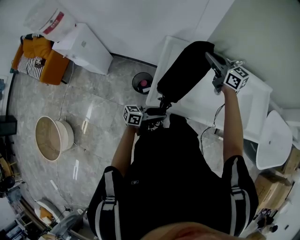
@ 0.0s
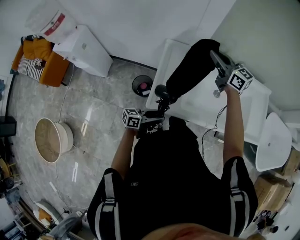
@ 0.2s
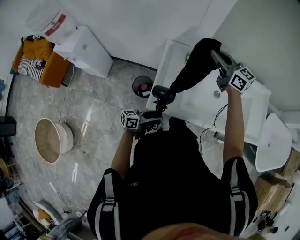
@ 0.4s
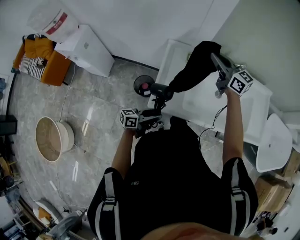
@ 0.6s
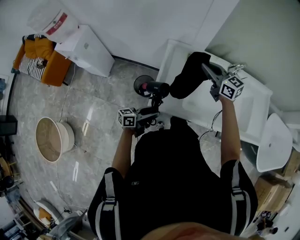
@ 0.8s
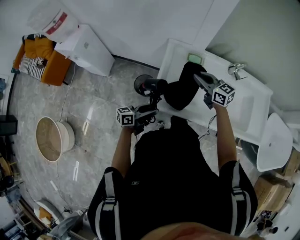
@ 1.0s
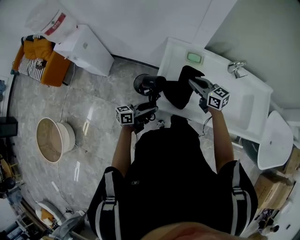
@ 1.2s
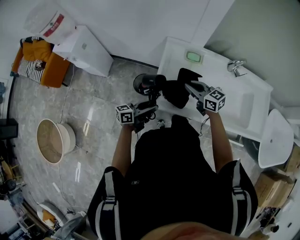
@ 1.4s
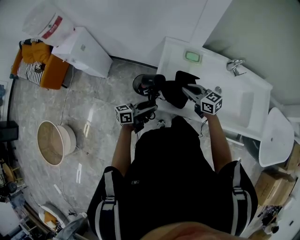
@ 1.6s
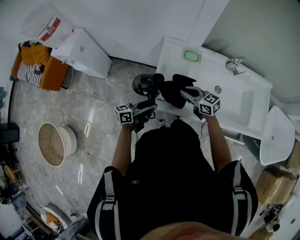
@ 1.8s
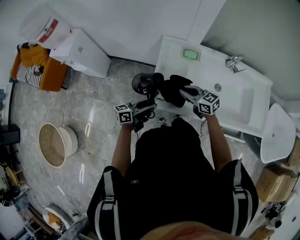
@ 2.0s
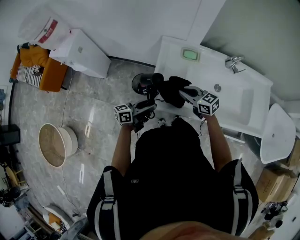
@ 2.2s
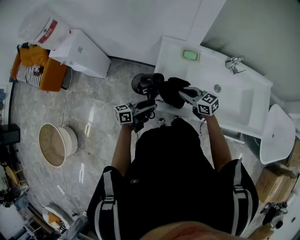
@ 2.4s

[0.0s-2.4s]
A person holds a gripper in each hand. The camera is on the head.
0.0s to 1.2s: The left gripper goes some 10 cm to the left. Meanwhile the right gripper is displaced downward and backward by about 15 cm.
1.2s to 2.4s: The right gripper is displaced downward by approximately 5 cm.

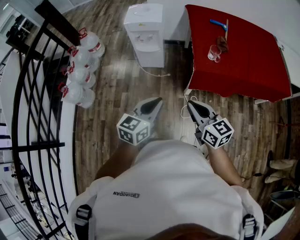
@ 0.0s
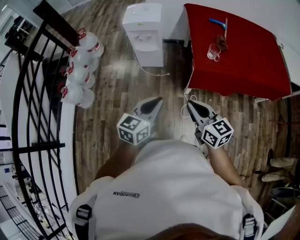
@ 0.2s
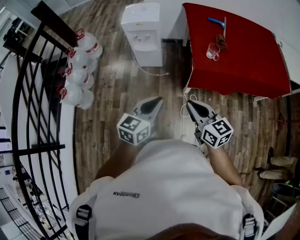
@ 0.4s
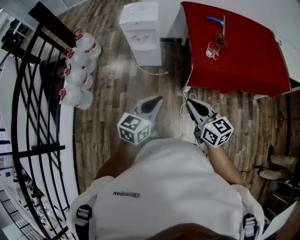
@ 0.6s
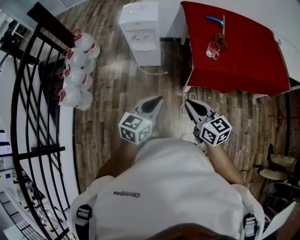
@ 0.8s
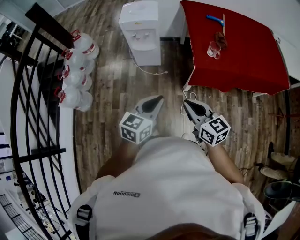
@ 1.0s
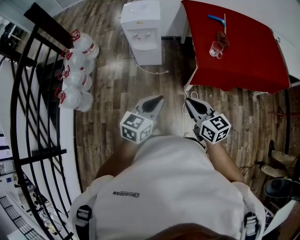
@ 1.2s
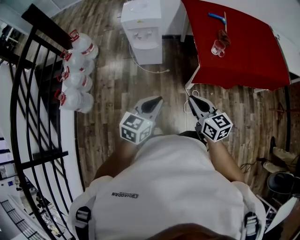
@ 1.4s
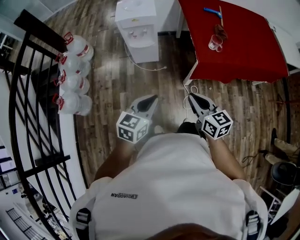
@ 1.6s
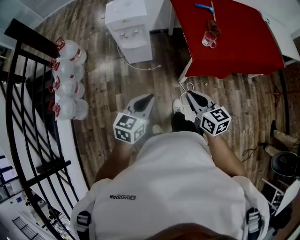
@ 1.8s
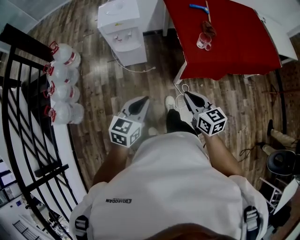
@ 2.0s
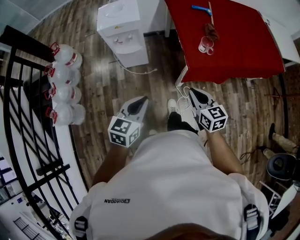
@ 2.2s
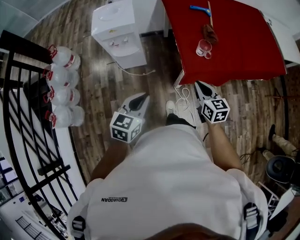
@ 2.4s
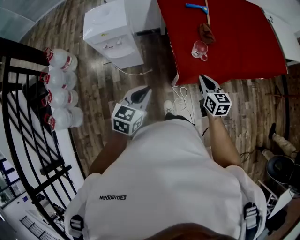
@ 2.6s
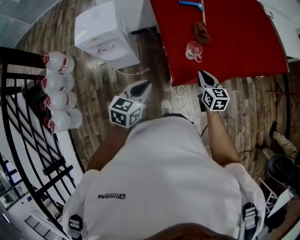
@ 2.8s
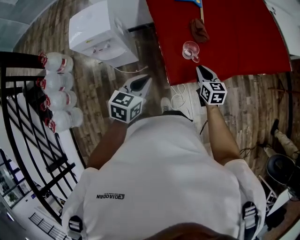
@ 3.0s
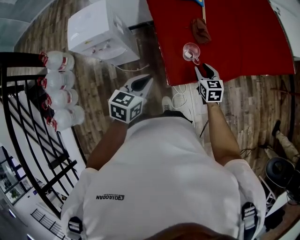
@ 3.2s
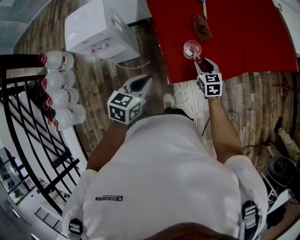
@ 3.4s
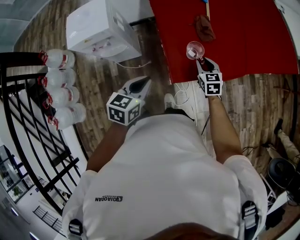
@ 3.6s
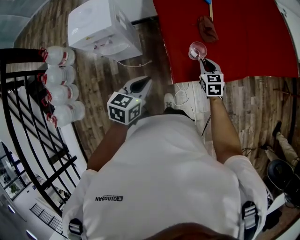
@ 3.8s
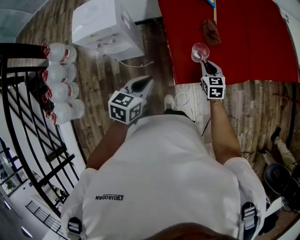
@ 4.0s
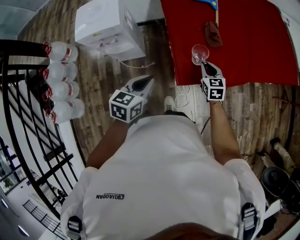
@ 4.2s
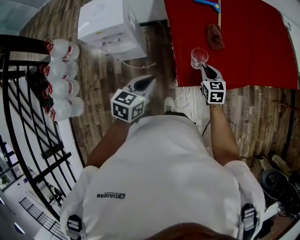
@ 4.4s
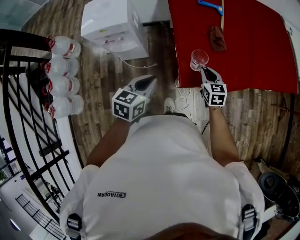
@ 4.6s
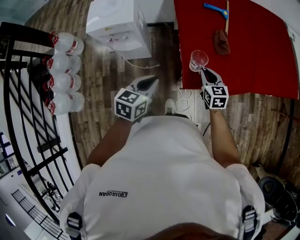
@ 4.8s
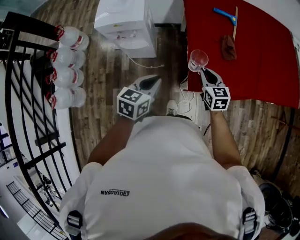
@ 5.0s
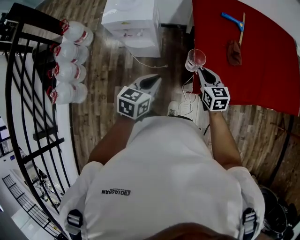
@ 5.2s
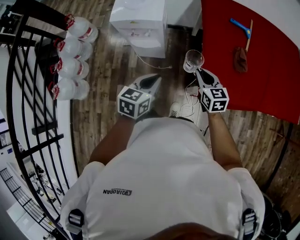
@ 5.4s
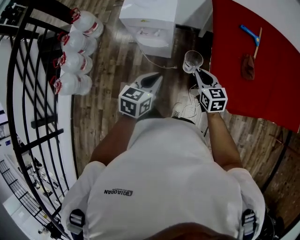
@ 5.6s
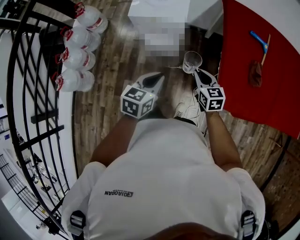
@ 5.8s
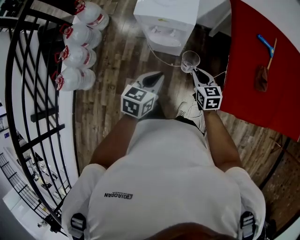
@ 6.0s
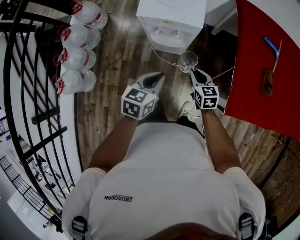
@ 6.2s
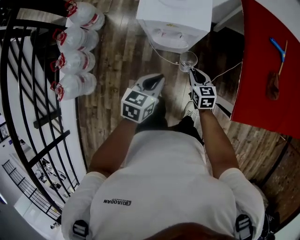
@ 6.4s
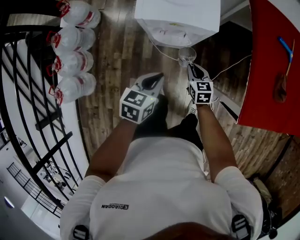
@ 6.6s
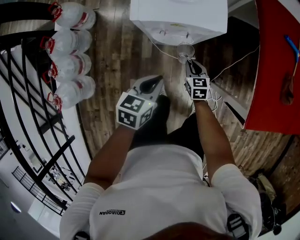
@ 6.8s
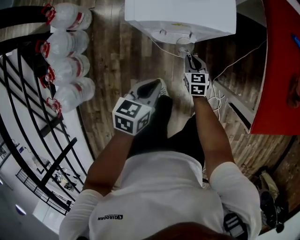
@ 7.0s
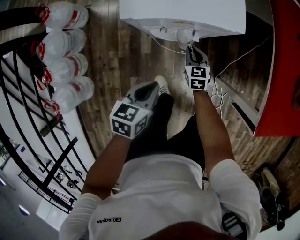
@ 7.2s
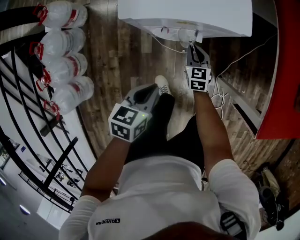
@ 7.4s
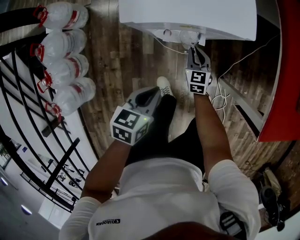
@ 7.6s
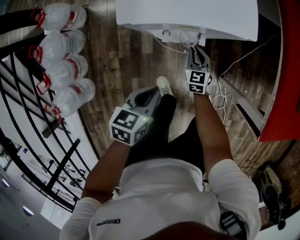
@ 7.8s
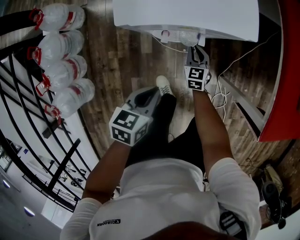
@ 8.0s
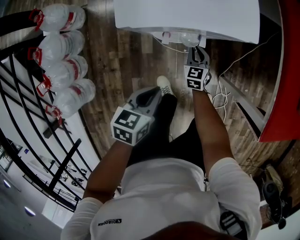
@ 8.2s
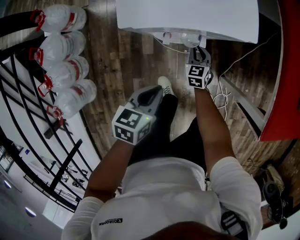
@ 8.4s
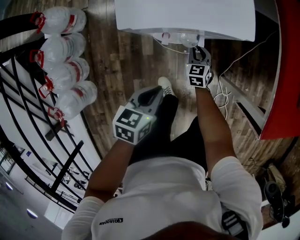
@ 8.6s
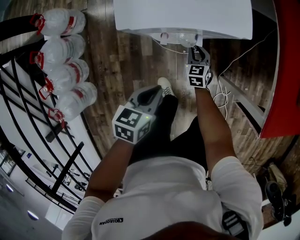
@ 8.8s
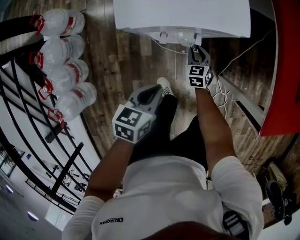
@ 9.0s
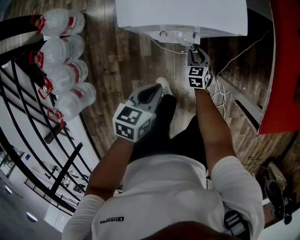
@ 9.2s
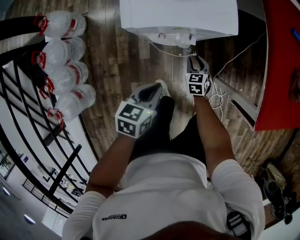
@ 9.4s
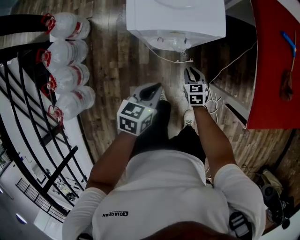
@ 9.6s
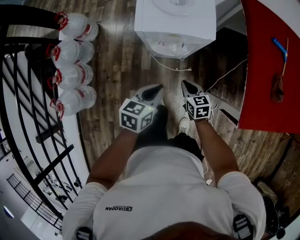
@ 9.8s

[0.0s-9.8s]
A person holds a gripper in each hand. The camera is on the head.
0.0s to 1.4s: Both grippers move to the left, about 5 cm.
1.4s to 2.8s: The left gripper is displaced forward by approximately 25 cm. Meanwhile the right gripper heads forward and to the right, covering about 35 cm, and changes its angle by some 30 degrees.
2.8s to 4.2s: The left gripper goes about 5 cm forward, while the right gripper heads forward and downward, covering roughly 10 cm.
4.2s to 5.6s: The left gripper is displaced to the left by some 15 cm. The right gripper heads to the left, covering roughly 25 cm, and turns by roughly 20 degrees.
5.6s to 7.0s: The left gripper shifts about 30 cm to the left, downward and forward; the right gripper heads downward, to the left and forward, covering approximately 40 cm.
7.0s to 8.4s: The right gripper shifts roughly 10 cm downward and forward.
8.4s to 9.8s: The right gripper moves upward and backward, about 20 cm, and swivels some 30 degrees, while the left gripper heads upward, covering about 10 cm.

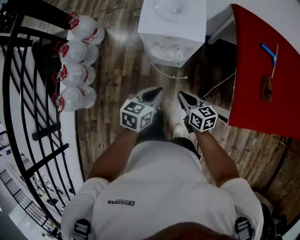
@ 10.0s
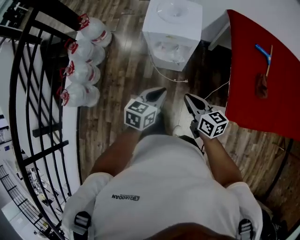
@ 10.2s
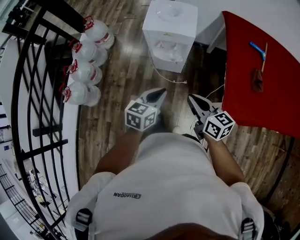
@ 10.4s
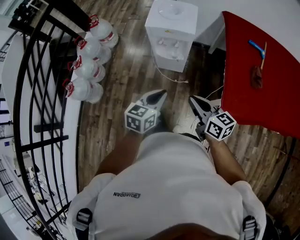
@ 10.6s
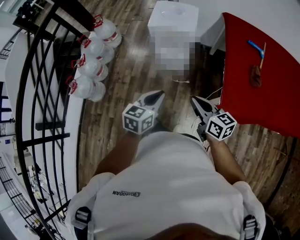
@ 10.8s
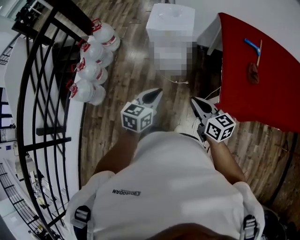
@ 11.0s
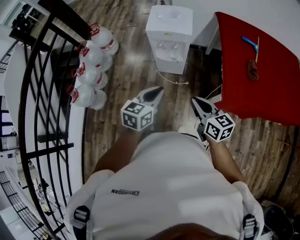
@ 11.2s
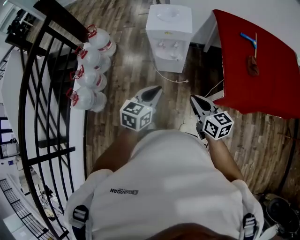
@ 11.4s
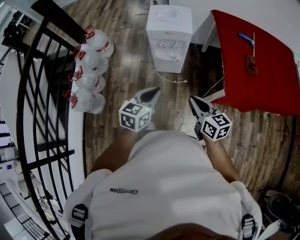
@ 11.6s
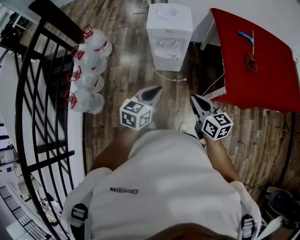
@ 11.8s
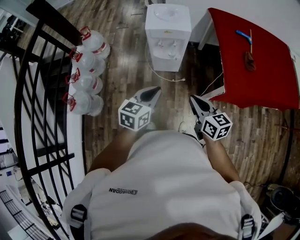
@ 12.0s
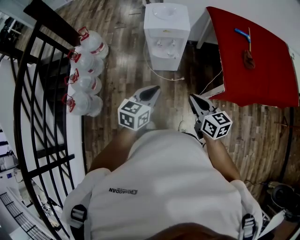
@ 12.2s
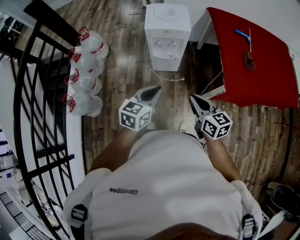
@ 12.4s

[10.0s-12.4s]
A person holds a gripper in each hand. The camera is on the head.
10.0s to 11.2s: The two grippers go approximately 25 cm backward and upward.
11.2s to 12.4s: Both grippers travel together to the left, approximately 5 cm.

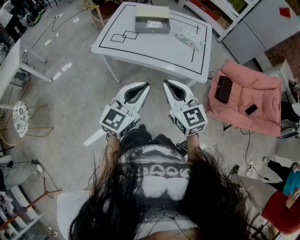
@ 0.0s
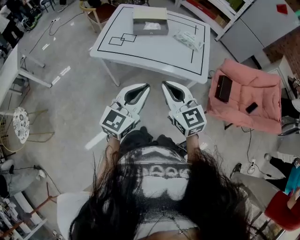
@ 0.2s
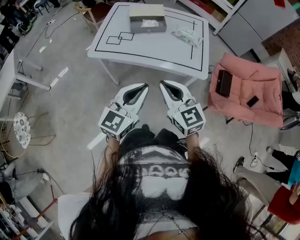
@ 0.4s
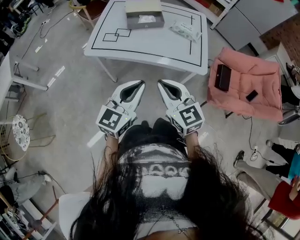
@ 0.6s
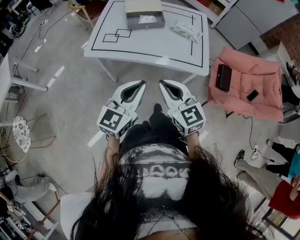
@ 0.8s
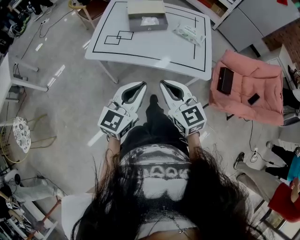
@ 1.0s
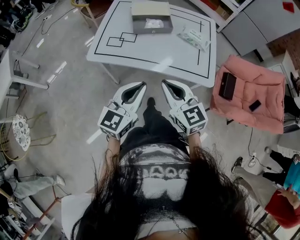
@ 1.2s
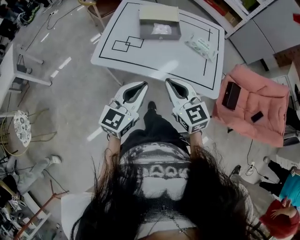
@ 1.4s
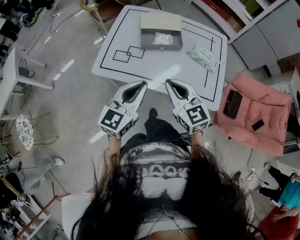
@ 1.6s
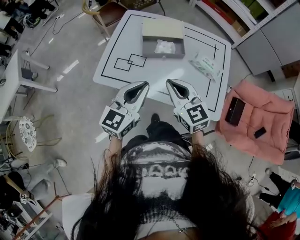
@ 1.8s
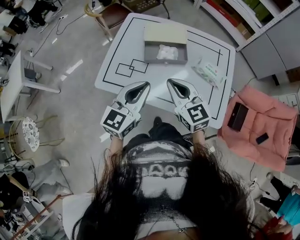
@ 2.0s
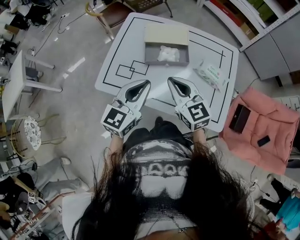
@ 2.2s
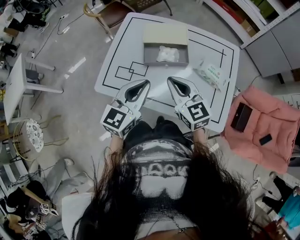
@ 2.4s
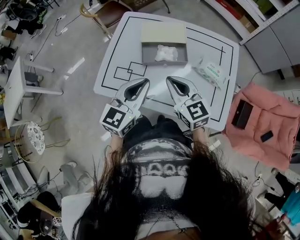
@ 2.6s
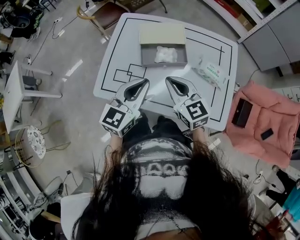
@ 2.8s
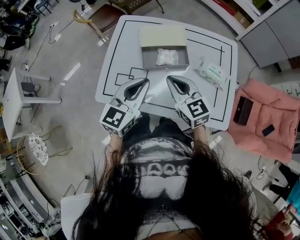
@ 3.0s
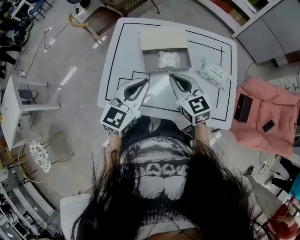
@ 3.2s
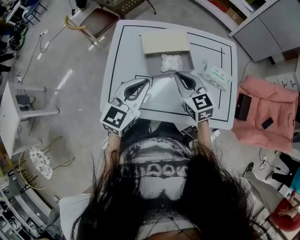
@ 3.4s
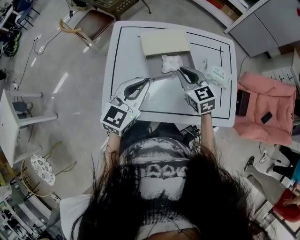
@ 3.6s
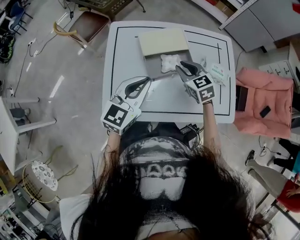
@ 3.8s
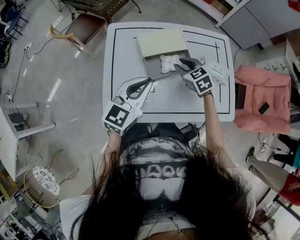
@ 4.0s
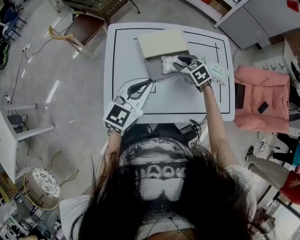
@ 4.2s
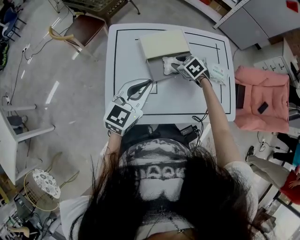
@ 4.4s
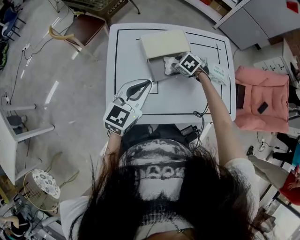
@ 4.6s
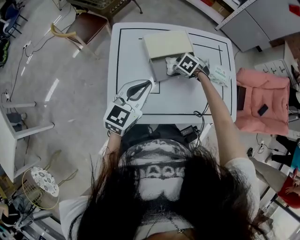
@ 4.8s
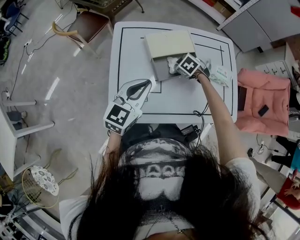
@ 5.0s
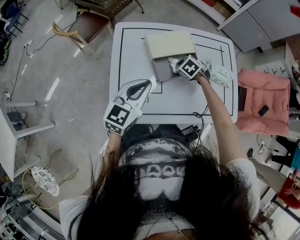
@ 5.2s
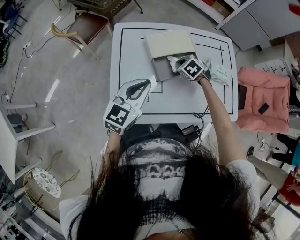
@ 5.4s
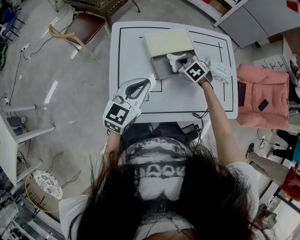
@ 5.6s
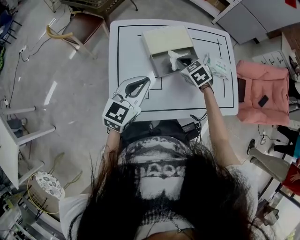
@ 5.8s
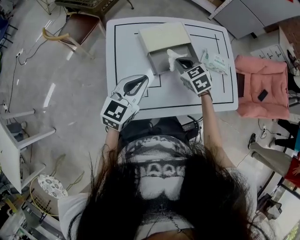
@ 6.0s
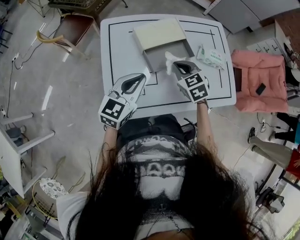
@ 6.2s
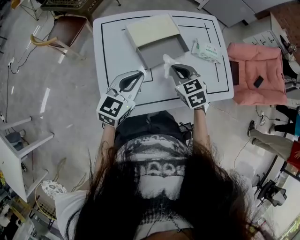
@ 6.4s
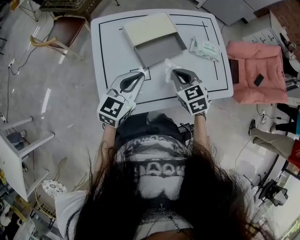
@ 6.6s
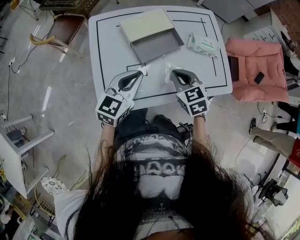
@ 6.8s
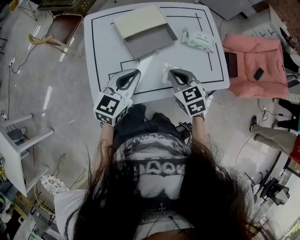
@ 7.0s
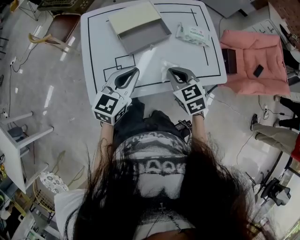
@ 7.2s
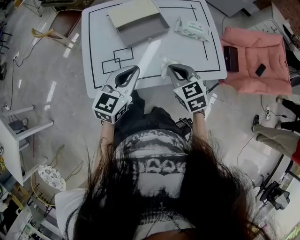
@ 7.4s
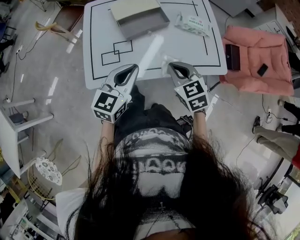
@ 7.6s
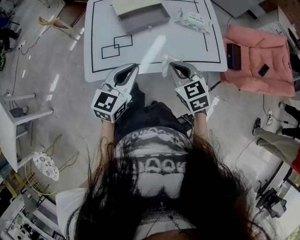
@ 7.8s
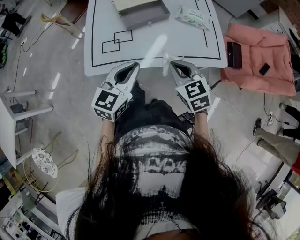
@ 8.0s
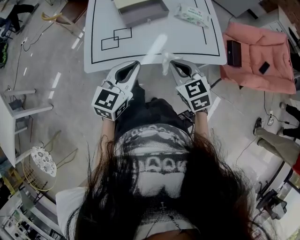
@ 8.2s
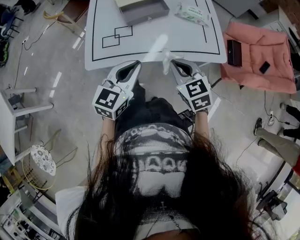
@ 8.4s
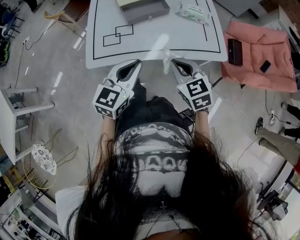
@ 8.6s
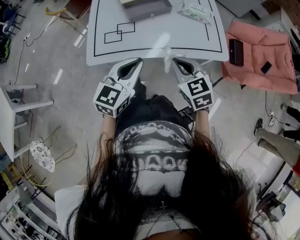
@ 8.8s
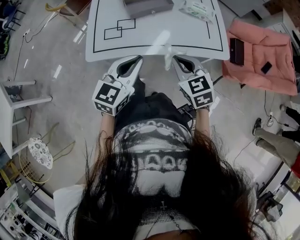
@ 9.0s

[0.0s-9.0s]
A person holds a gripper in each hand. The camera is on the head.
0.0s to 1.6s: Both grippers travel together forward, approximately 25 cm.
1.6s to 3.0s: The two grippers go roughly 20 cm forward.
3.0s to 4.4s: The right gripper goes roughly 25 cm forward and downward, tilts its fingers approximately 40 degrees downward, and opens. Meanwhile the left gripper shifts approximately 15 cm to the left and forward.
4.4s to 6.0s: The right gripper moves upward and backward, roughly 10 cm, and closes its fingers.
6.0s to 7.6s: The right gripper is displaced backward and to the right by roughly 25 cm. The left gripper shifts approximately 20 cm to the right and backward.
7.6s to 9.0s: The two grippers go roughly 10 cm backward.
